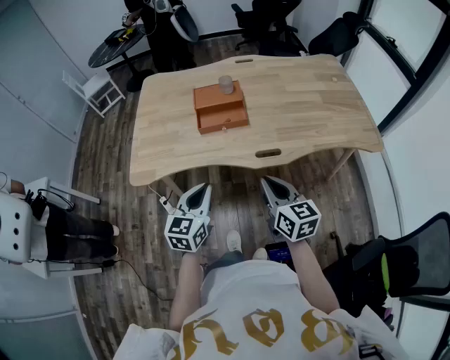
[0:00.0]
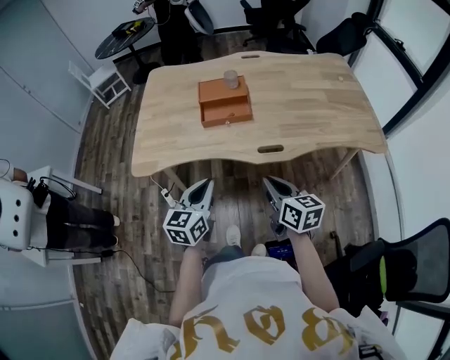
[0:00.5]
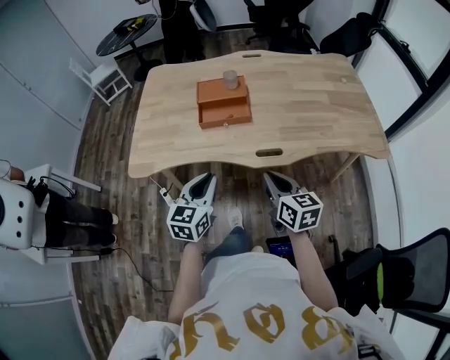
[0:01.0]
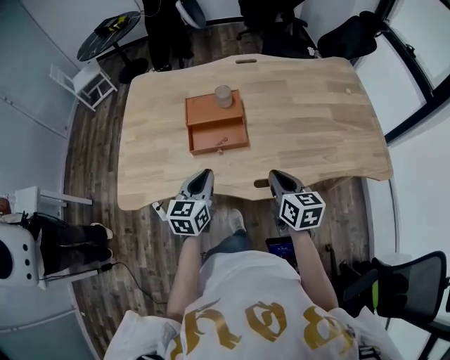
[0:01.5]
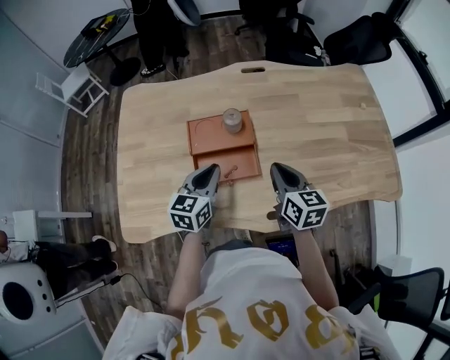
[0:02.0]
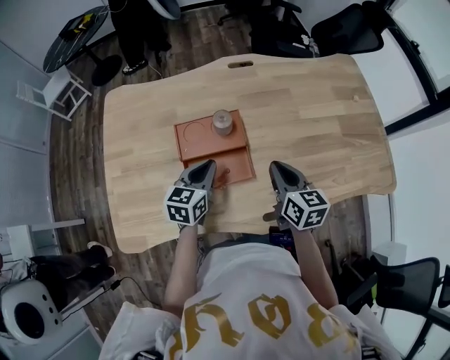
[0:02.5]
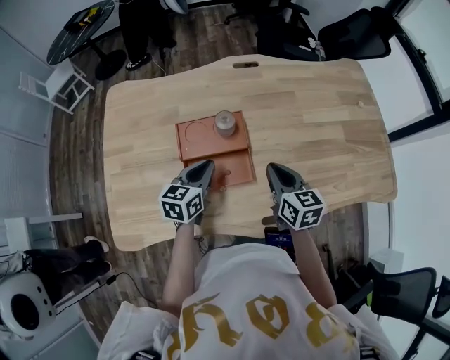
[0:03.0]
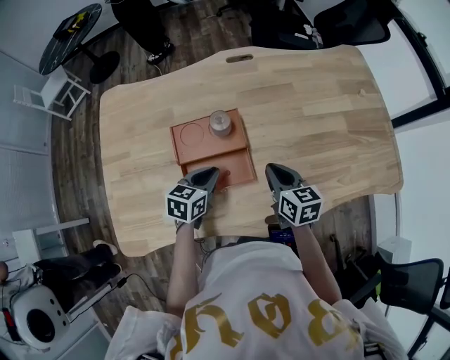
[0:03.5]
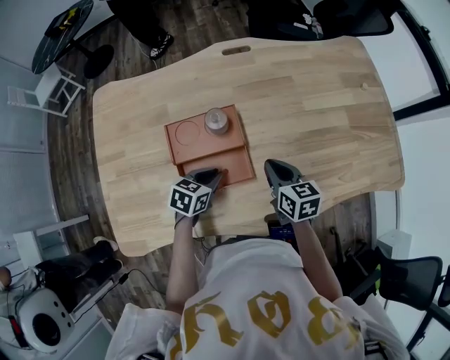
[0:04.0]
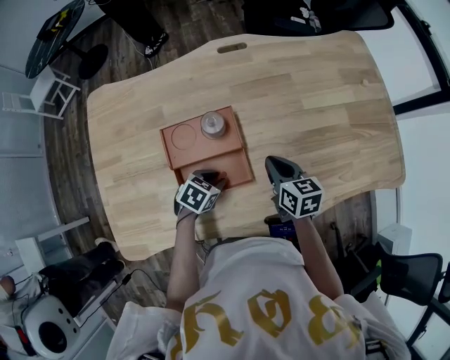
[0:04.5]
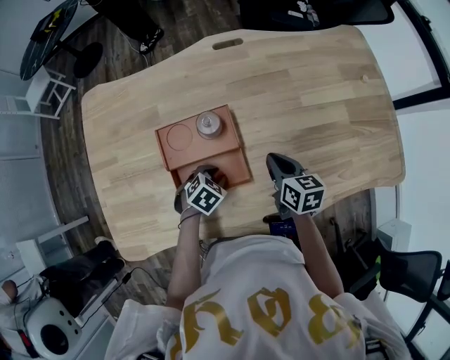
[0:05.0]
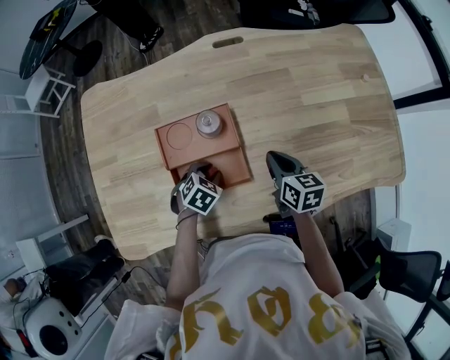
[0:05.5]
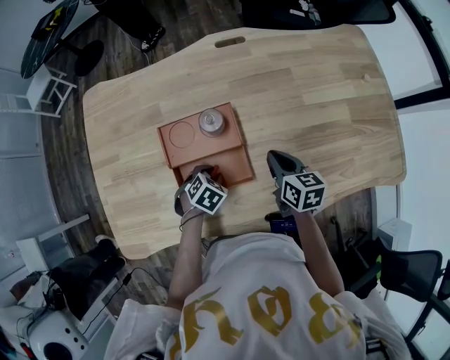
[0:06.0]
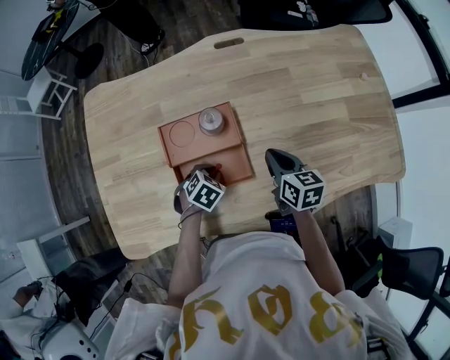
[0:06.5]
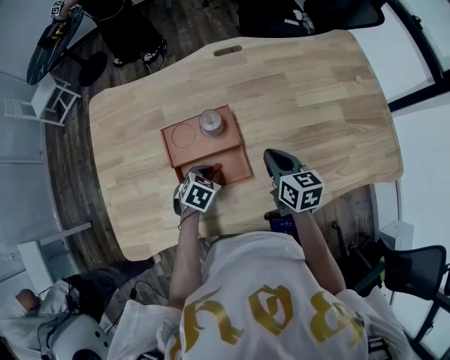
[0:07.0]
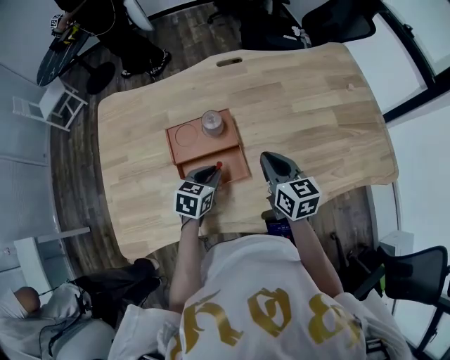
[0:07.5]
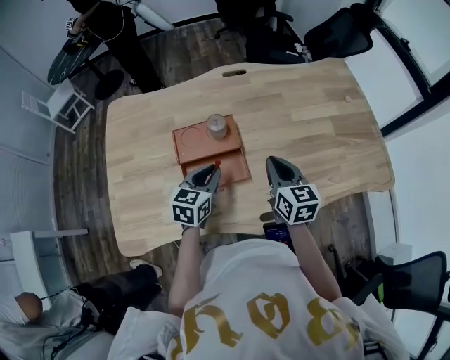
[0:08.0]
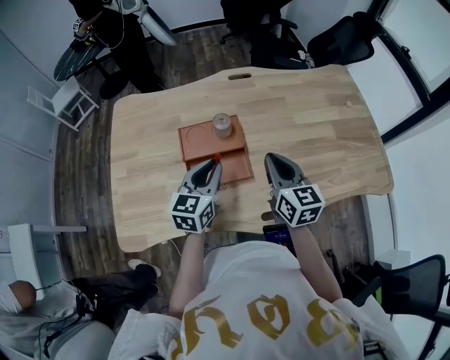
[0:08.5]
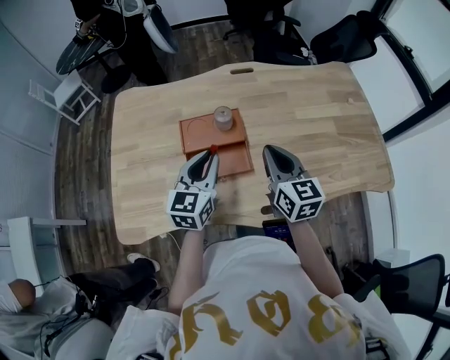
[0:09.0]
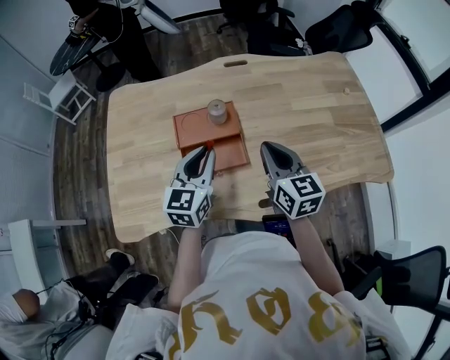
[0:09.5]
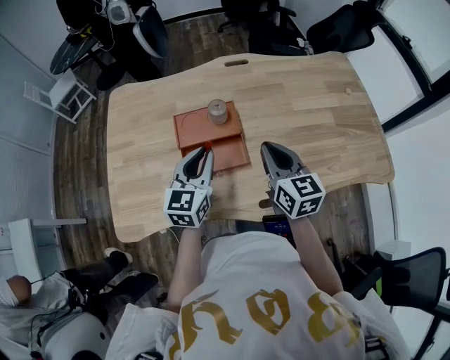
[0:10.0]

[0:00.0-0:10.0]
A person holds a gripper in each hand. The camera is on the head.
0:00.0 to 0:02.0: The grippers both shift forward by some 35 cm.
0:02.0 to 0:04.0: The right gripper is displaced downward and forward by roughly 10 cm. The left gripper heads downward, covering some 15 cm, and rotates about 40 degrees.
0:04.0 to 0:06.0: The left gripper moves downward, approximately 5 cm, and turns by approximately 30 degrees.
0:06.0 to 0:08.0: The left gripper shifts some 20 cm upward, and tilts its fingers approximately 40 degrees upward. The right gripper moves upward and backward, about 15 cm, and swivels some 20 degrees.
0:08.0 to 0:10.0: The left gripper shifts approximately 10 cm upward. The right gripper shifts approximately 5 cm upward.

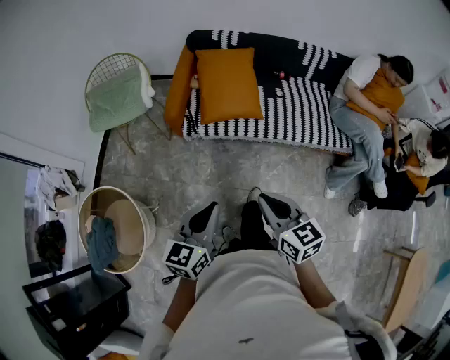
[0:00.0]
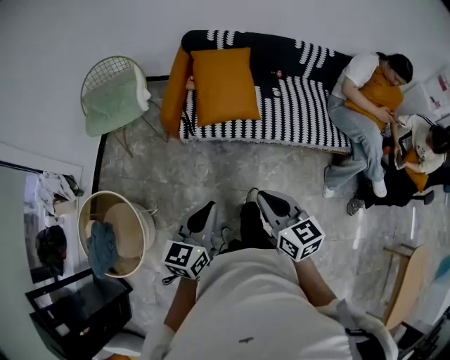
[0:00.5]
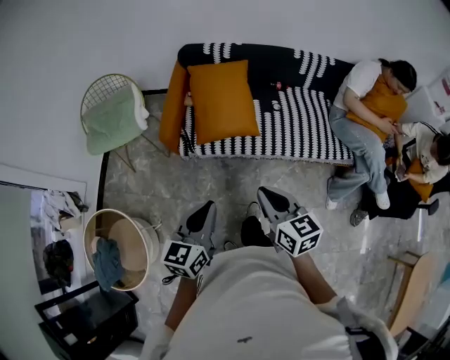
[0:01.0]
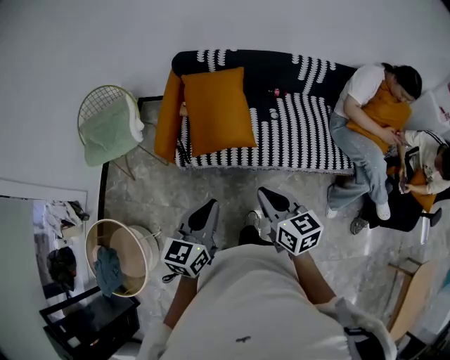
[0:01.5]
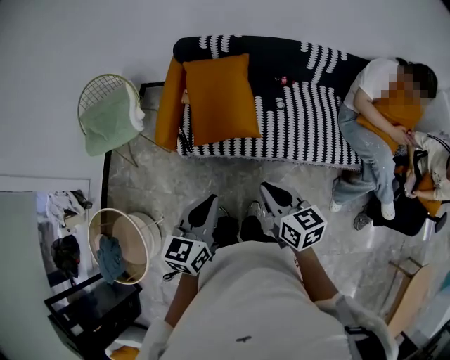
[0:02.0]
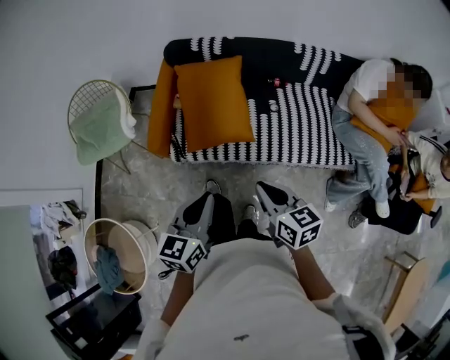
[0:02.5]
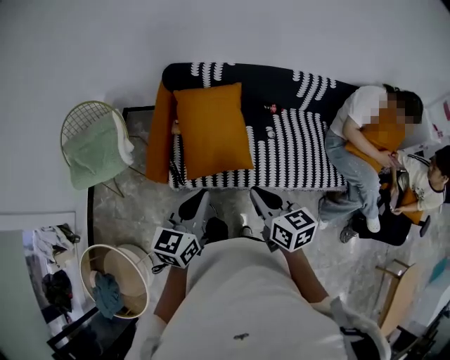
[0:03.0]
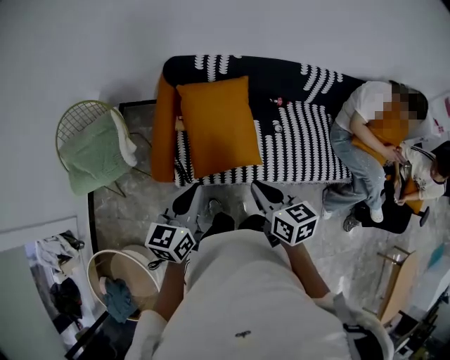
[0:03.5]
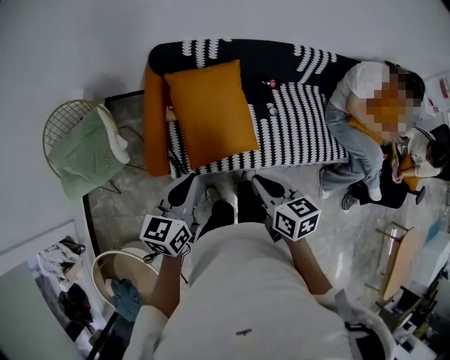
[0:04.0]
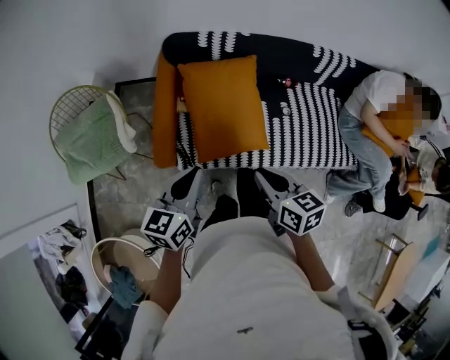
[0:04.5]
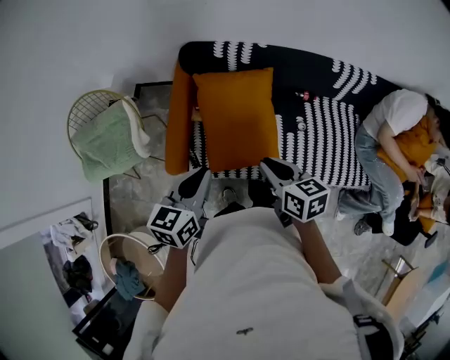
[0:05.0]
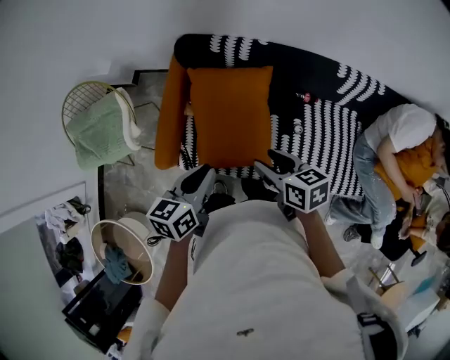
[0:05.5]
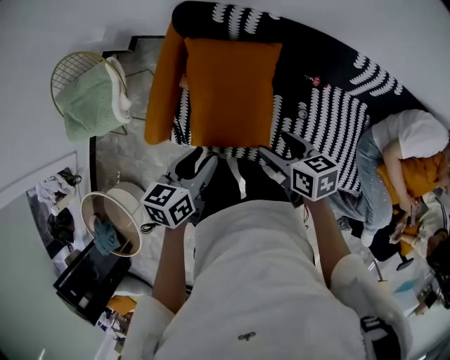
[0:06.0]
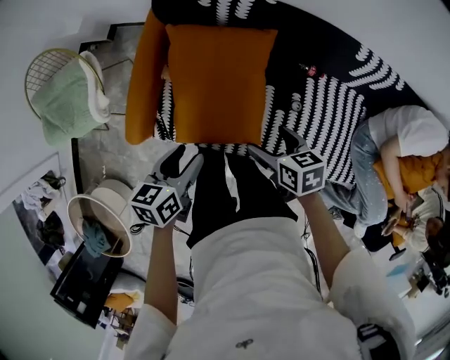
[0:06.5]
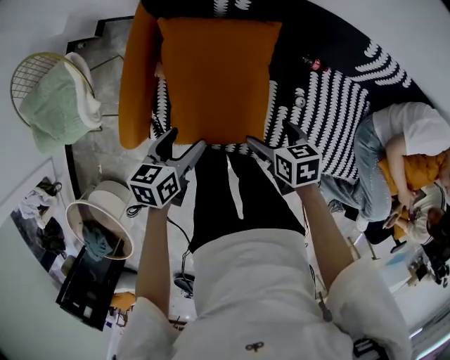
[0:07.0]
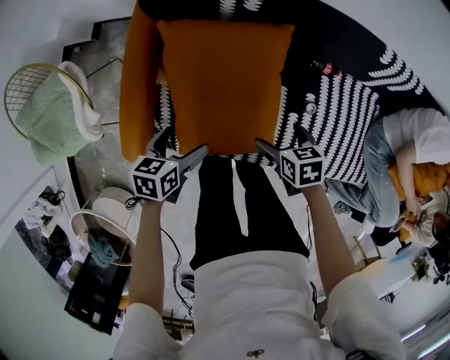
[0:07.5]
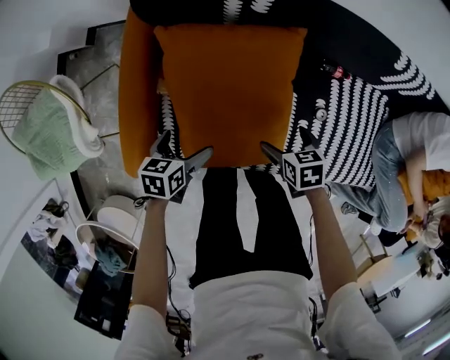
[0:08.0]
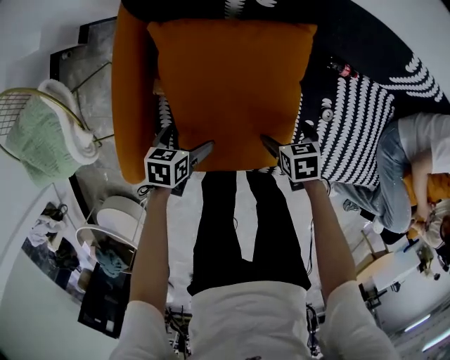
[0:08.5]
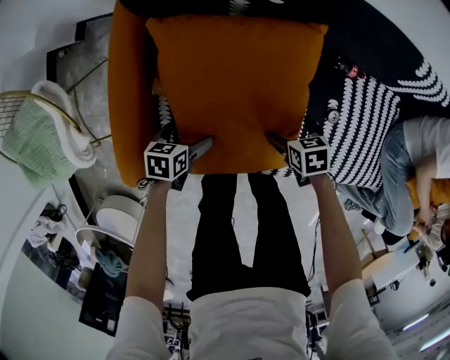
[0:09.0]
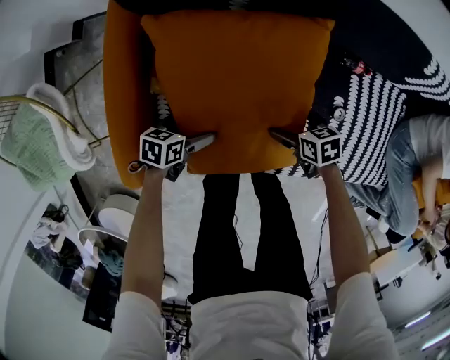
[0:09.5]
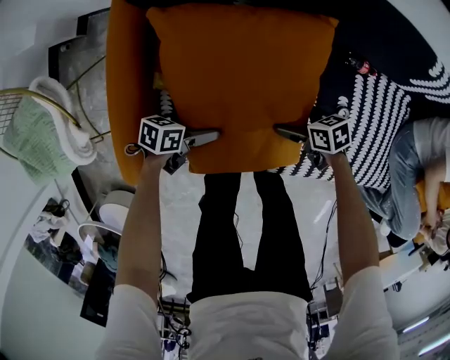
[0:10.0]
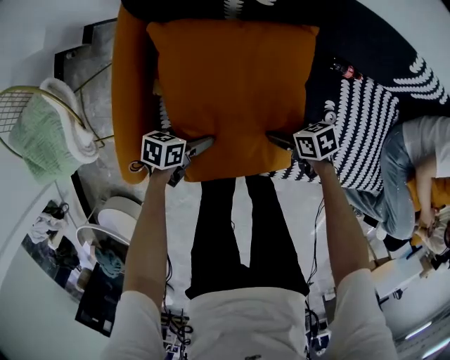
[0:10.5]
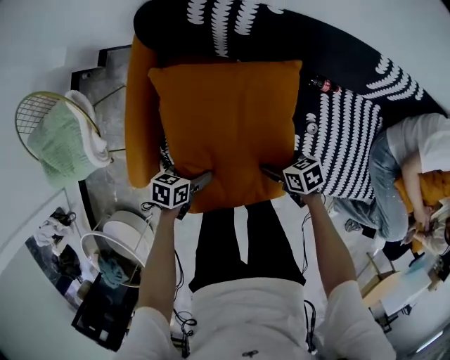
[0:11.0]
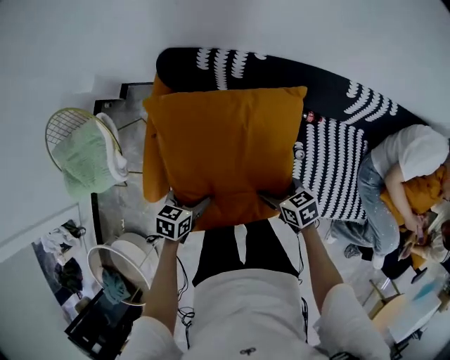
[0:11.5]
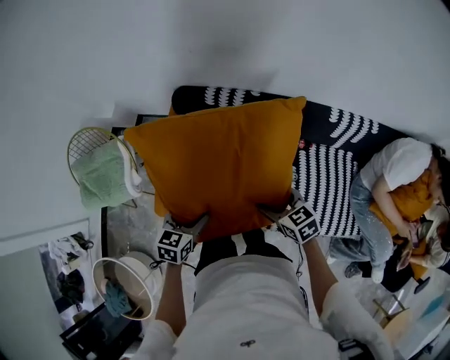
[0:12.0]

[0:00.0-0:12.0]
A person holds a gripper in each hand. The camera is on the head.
0:00.0 to 0:02.0: The grippers both shift forward and to the right by roughly 25 cm.
0:02.0 to 0:04.0: The two grippers go roughly 30 cm forward and to the left.
0:04.0 to 0:06.0: The two grippers go approximately 25 cm forward, to the right and downward. The left gripper swivels some 30 degrees, while the right gripper rotates roughly 30 degrees, and opens up.
0:06.0 to 0:08.0: The grippers both shift downward by some 30 cm. The left gripper turns by some 20 degrees, and opens; the right gripper rotates approximately 30 degrees.
0:08.0 to 0:10.0: Both grippers move downward, some 15 cm. The right gripper swivels about 20 degrees. Meanwhile the left gripper rotates approximately 30 degrees.
0:10.0 to 0:12.0: Both grippers move upward, approximately 40 cm. The right gripper turns by some 40 degrees, and closes. Meanwhile the left gripper changes its angle by some 50 degrees, and closes its fingers.

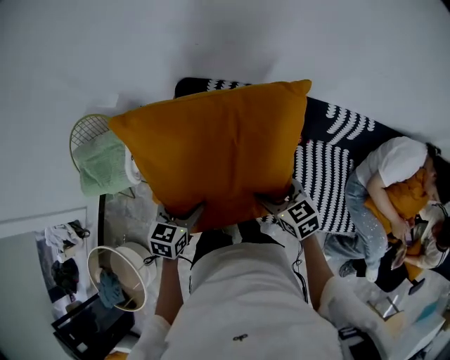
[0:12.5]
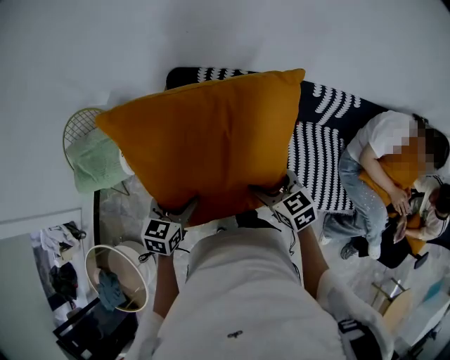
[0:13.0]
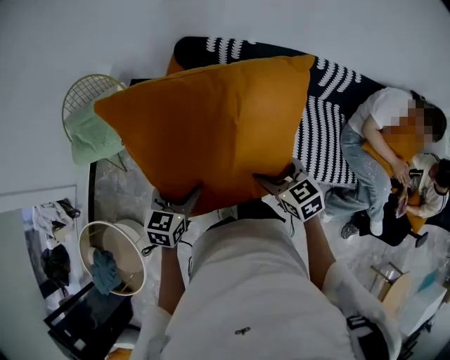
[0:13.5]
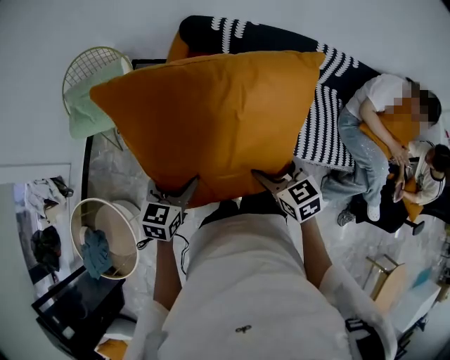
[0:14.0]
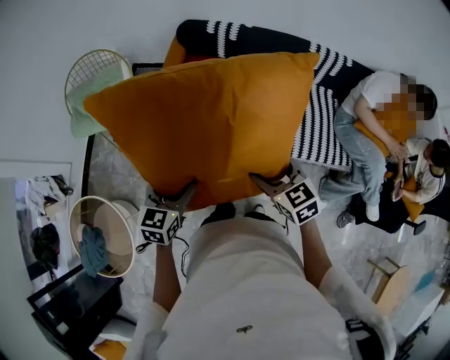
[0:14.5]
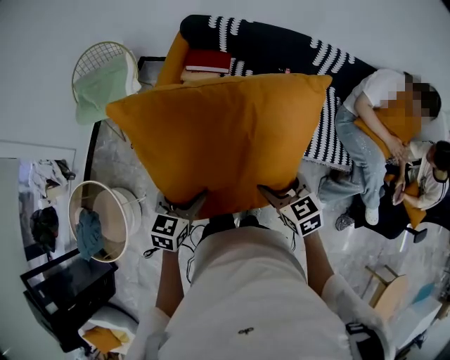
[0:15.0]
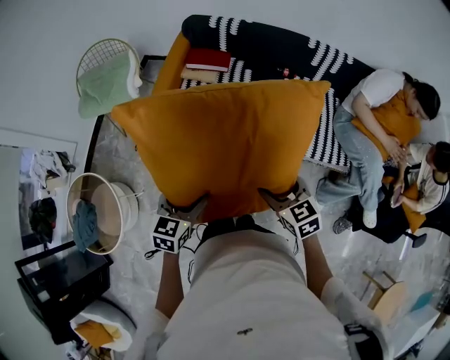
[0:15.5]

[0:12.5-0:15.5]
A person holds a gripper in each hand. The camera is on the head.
0:12.5 to 0:14.0: The grippers both shift backward and to the left by some 35 cm.
0:14.0 to 0:15.5: The two grippers go some 20 cm backward and to the right.

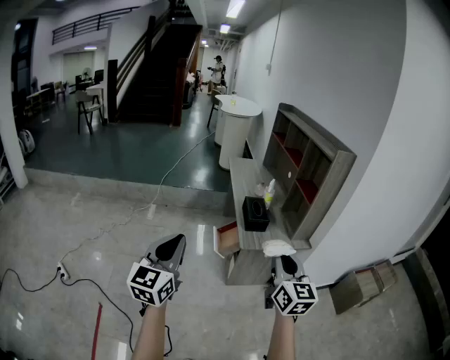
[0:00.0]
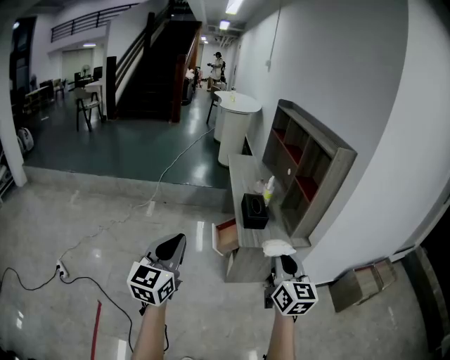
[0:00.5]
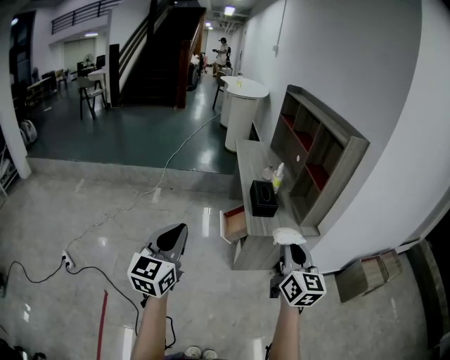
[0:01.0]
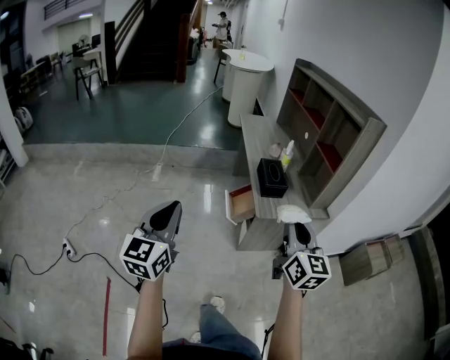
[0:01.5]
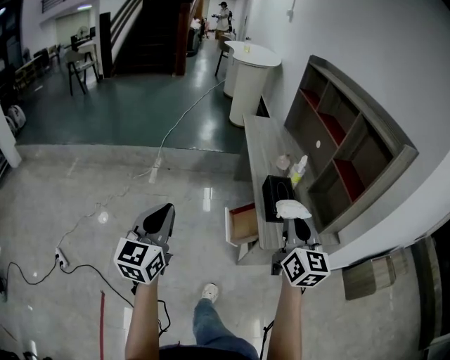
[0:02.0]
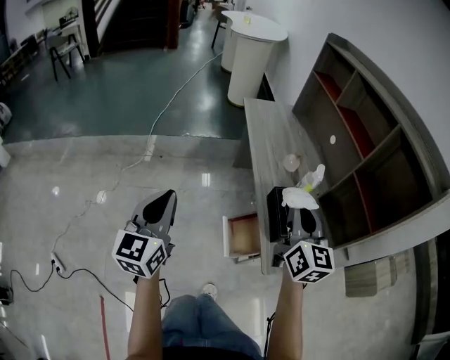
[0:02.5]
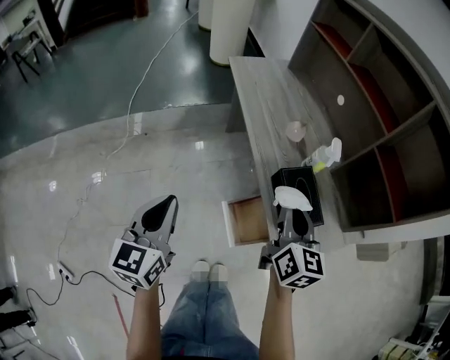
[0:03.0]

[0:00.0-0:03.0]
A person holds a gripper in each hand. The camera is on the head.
0:00.0 to 0:01.5: The left gripper heads to the left and forward, covering approximately 10 cm; the right gripper heads forward, covering approximately 5 cm.
0:01.5 to 0:03.0: The pair of grippers is taken forward, roughly 50 cm. The right gripper changes its angle by roughly 20 degrees.
